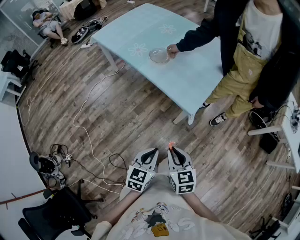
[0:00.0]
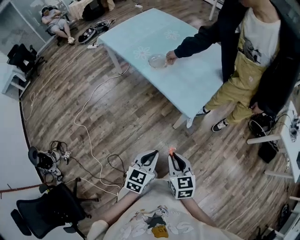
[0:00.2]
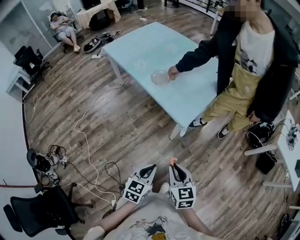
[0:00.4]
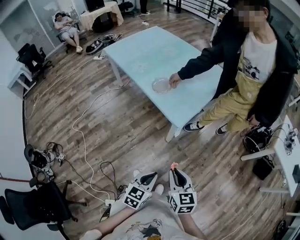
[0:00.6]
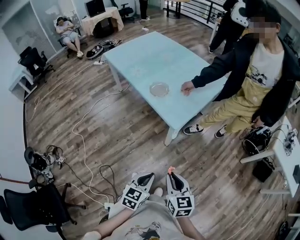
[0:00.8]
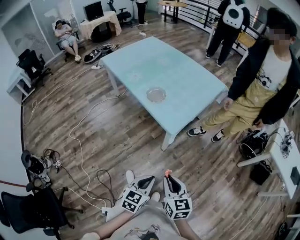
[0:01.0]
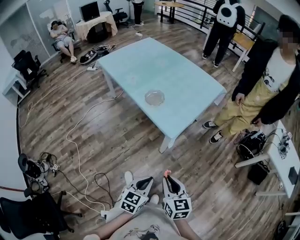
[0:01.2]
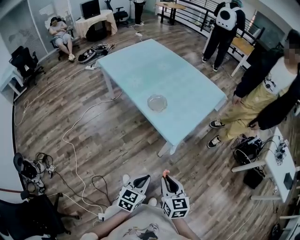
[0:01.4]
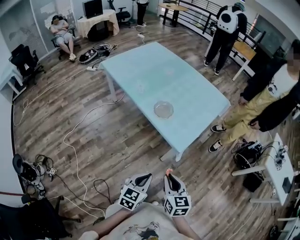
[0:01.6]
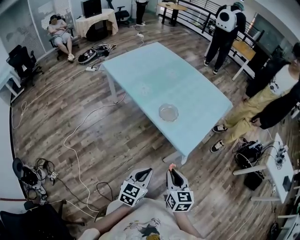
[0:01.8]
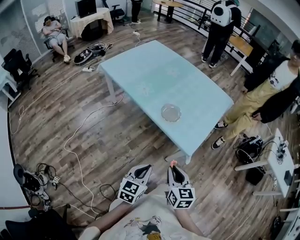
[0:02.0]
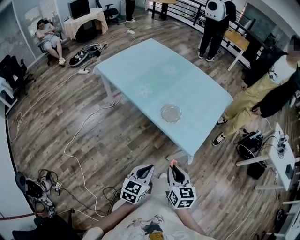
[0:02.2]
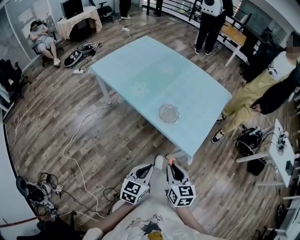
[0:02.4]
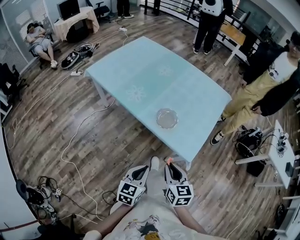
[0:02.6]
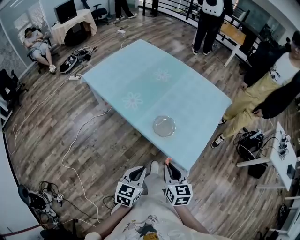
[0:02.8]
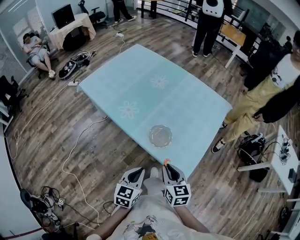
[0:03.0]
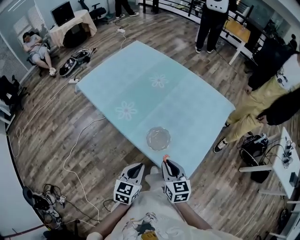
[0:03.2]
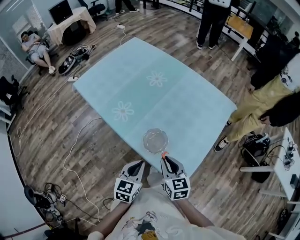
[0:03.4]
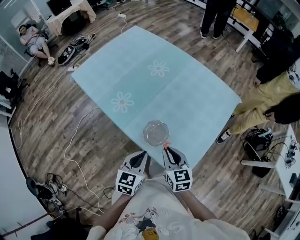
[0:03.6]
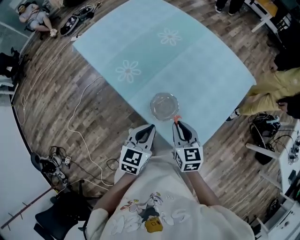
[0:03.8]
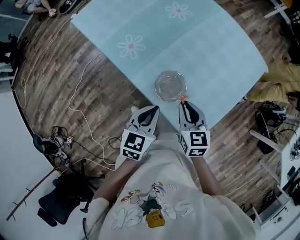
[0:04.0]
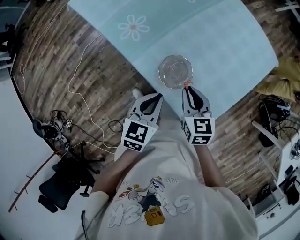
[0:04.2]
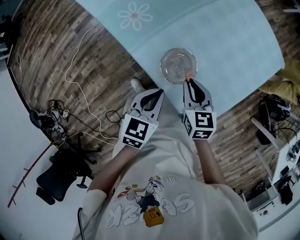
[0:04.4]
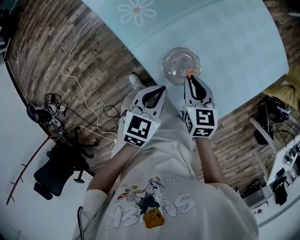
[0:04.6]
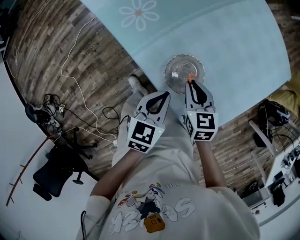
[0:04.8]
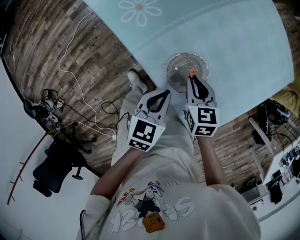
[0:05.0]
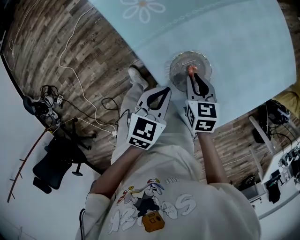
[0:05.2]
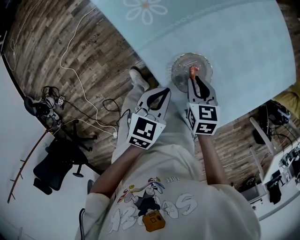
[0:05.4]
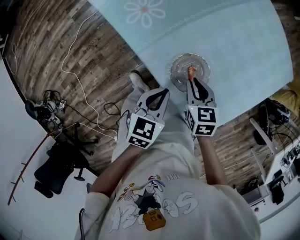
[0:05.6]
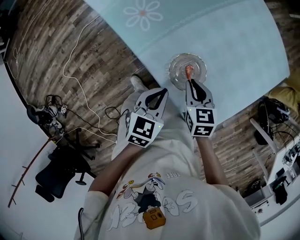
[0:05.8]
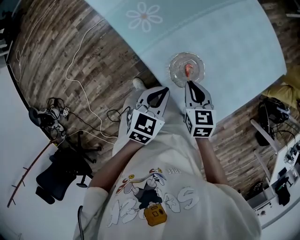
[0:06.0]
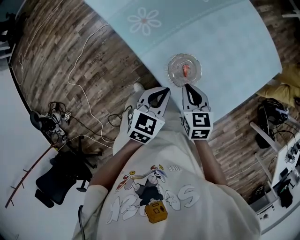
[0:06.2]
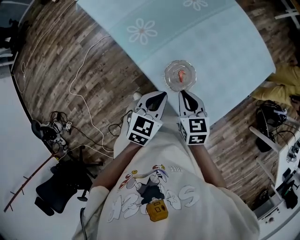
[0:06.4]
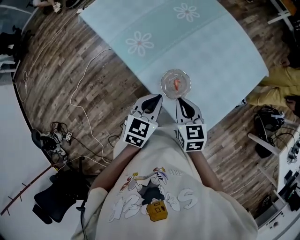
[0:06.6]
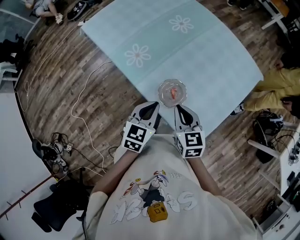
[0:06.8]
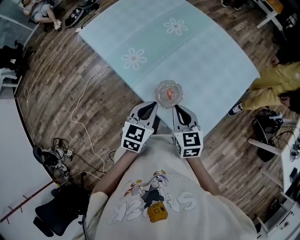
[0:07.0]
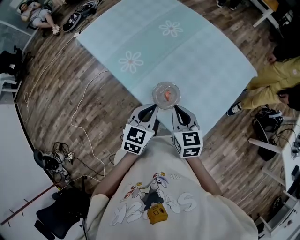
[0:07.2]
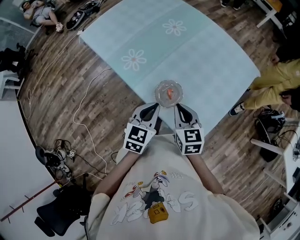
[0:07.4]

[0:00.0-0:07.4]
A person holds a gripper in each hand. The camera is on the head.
0:00.0 to 0:01.4: The two grippers go roughly 10 cm to the right.
0:01.4 to 0:03.0: Both grippers travel together forward and to the left, approximately 35 cm.
0:03.0 to 0:04.4: The left gripper moves forward, downward and to the right, about 15 cm. Meanwhile the right gripper goes approximately 20 cm forward and downward.
0:04.4 to 0:06.0: The right gripper reaches about 10 cm downward, then returns.
0:06.0 to 0:07.4: The grippers both shift upward by approximately 10 cm.

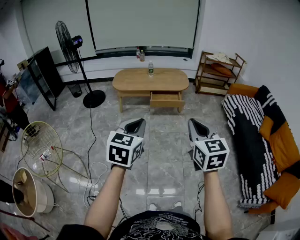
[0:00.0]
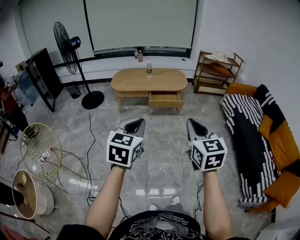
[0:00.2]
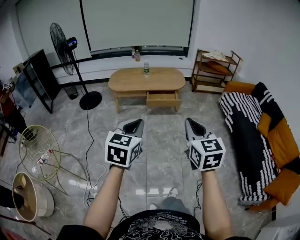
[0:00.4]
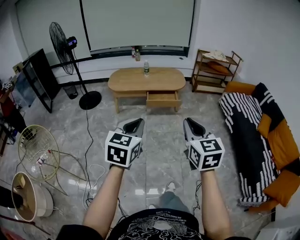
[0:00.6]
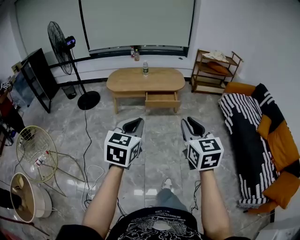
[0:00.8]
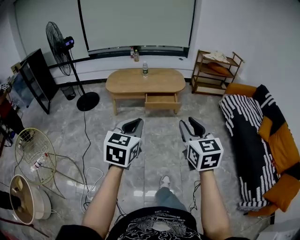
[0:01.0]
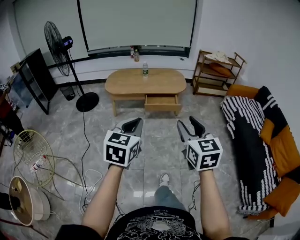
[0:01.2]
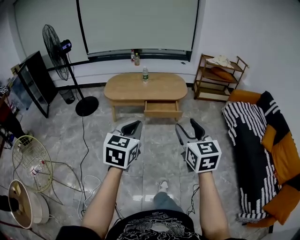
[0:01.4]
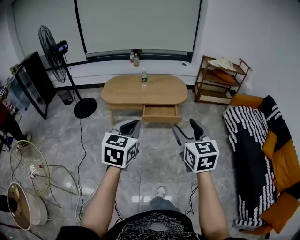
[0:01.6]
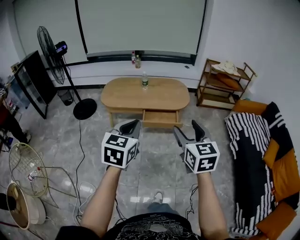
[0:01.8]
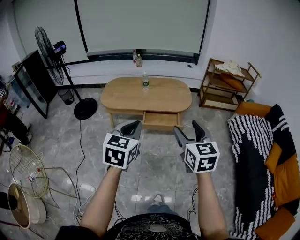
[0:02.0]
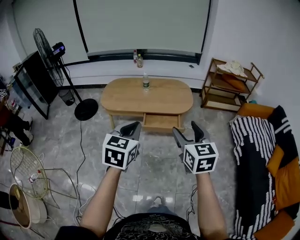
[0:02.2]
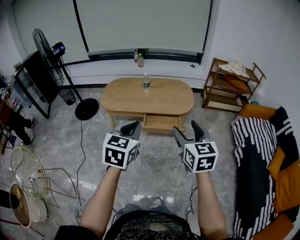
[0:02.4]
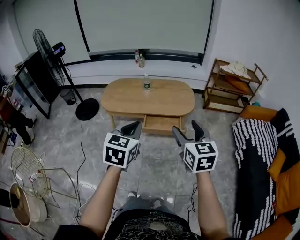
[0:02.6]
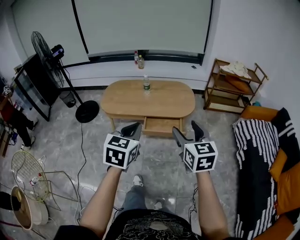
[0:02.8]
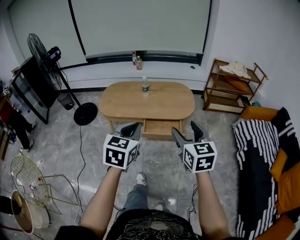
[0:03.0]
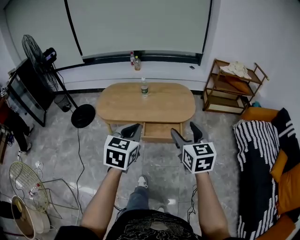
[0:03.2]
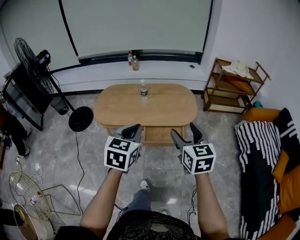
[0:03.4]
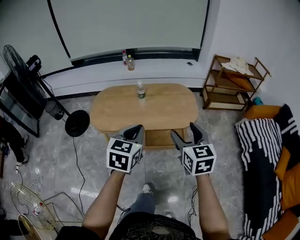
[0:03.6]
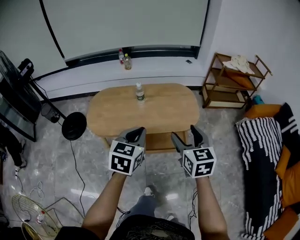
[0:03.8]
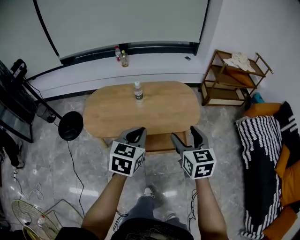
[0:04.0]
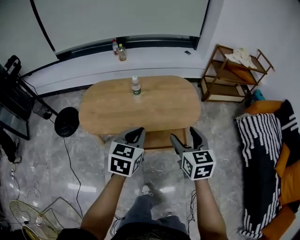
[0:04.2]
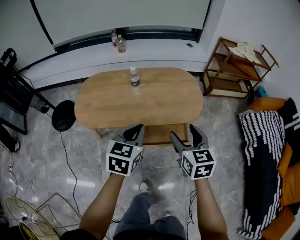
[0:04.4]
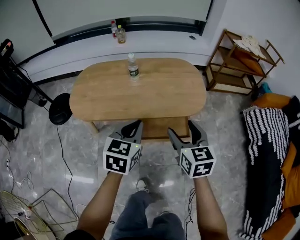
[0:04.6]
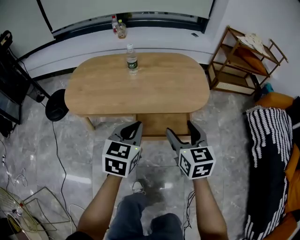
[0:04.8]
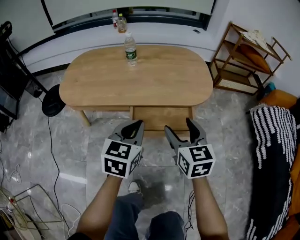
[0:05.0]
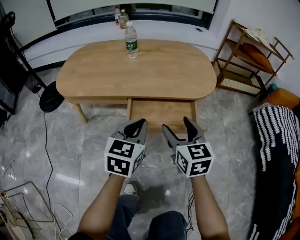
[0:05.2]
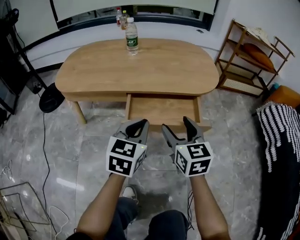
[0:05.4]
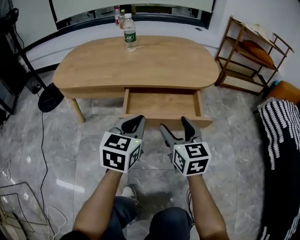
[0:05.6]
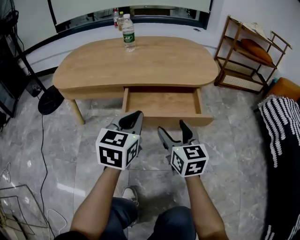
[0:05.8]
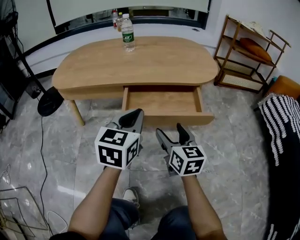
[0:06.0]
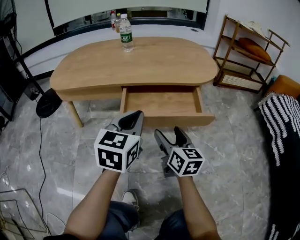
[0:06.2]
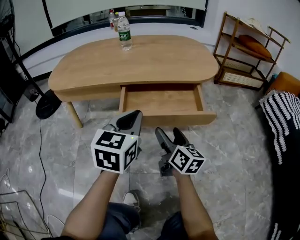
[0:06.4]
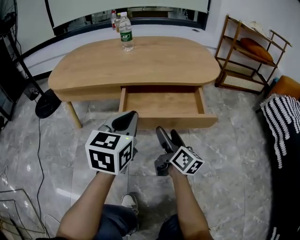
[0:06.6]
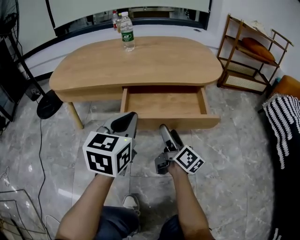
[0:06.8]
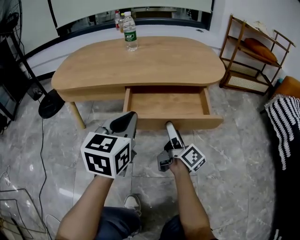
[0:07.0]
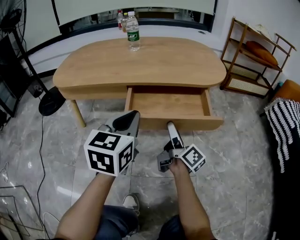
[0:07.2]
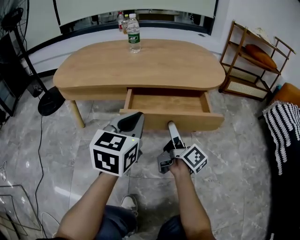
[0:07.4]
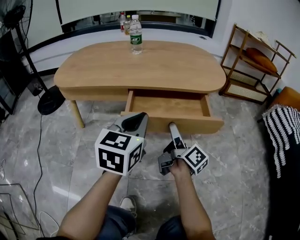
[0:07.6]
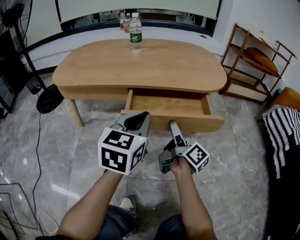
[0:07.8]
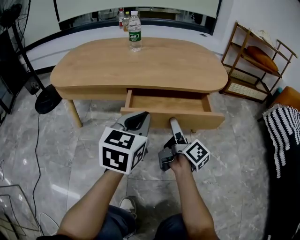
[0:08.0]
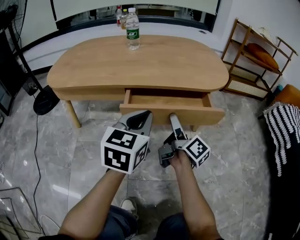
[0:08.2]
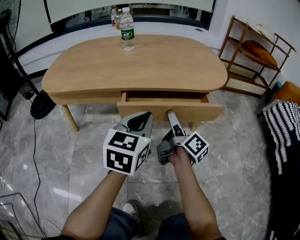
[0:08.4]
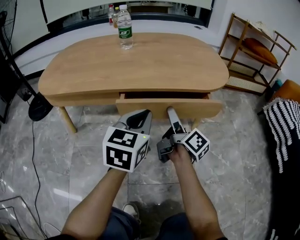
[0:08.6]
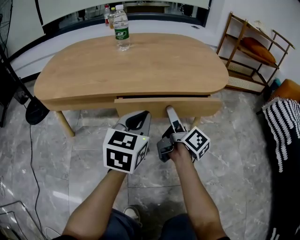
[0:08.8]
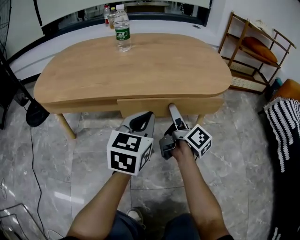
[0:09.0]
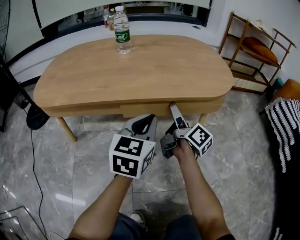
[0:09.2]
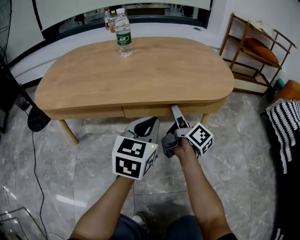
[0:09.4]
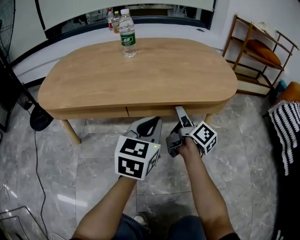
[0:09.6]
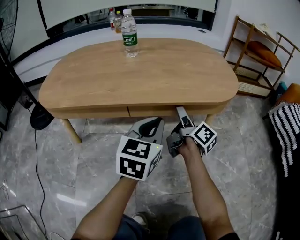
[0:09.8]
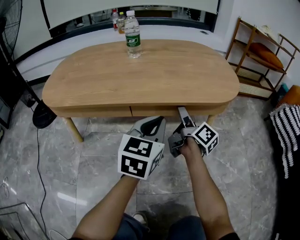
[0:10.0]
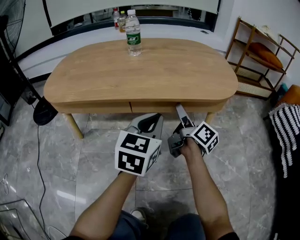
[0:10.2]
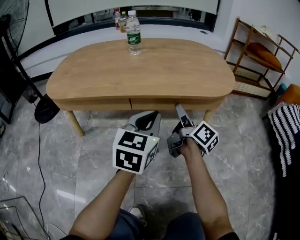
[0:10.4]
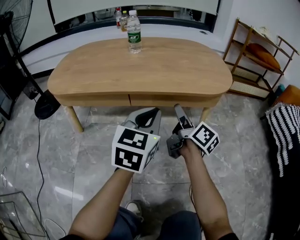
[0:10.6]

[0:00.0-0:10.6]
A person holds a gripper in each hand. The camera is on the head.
0:00.0 to 0:01.6: The two grippers go some 25 cm forward. The right gripper opens.
0:01.6 to 0:03.0: Both grippers travel together forward, roughly 25 cm.
0:03.0 to 0:04.6: The right gripper is displaced downward and forward by roughly 35 cm. The left gripper goes about 35 cm forward and downward.
0:04.6 to 0:06.0: Both grippers travel together downward, roughly 30 cm.
0:06.0 to 0:07.6: The right gripper is displaced forward by about 5 cm, and rotates around the line of its fingers by roughly 60 degrees, clockwise from behind.
0:07.6 to 0:09.0: The right gripper moves forward, approximately 15 cm. The left gripper travels forward and downward by about 10 cm.
0:09.0 to 0:10.6: The left gripper moves roughly 5 cm; the right gripper changes place by roughly 5 cm, and closes.

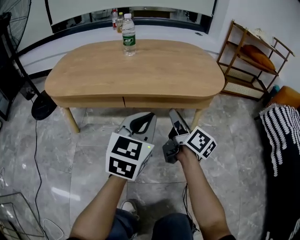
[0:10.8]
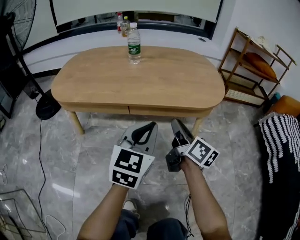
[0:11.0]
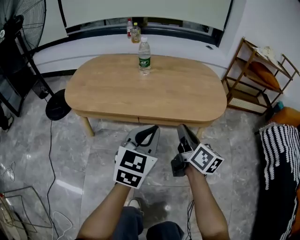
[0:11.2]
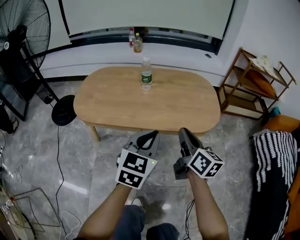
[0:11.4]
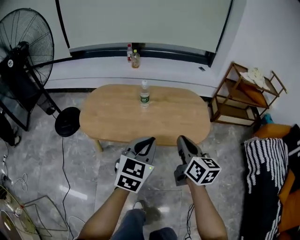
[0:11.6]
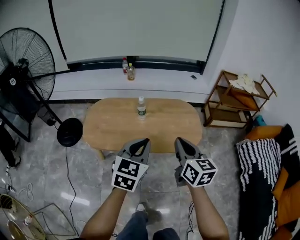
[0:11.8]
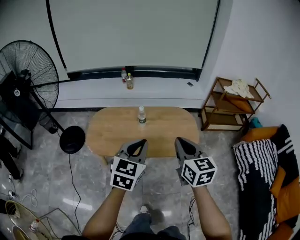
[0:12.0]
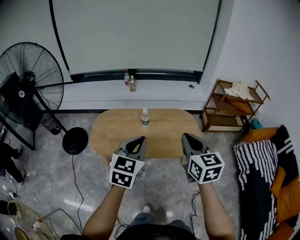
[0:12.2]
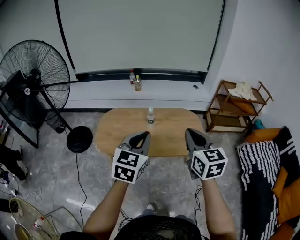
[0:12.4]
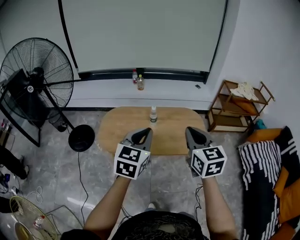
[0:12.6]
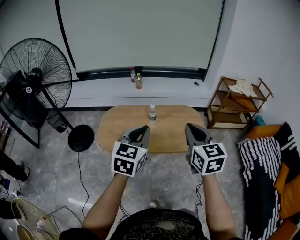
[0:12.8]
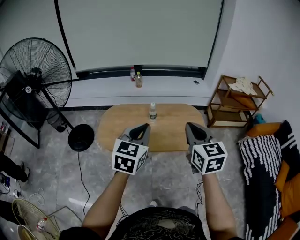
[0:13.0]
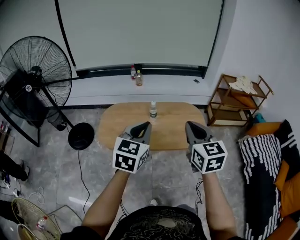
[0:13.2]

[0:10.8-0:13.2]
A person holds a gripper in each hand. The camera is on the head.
0:10.8 to 0:12.0: The two grippers go some 50 cm upward. The right gripper rotates around the line of its fingers by about 50 degrees, counterclockwise from behind, and closes its fingers.
0:12.0 to 0:13.2: The right gripper shifts about 5 cm upward, while the left gripper is displaced to the left and upward by about 10 cm.

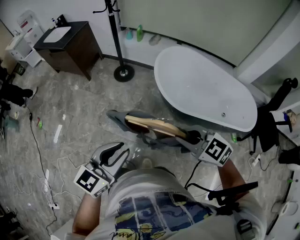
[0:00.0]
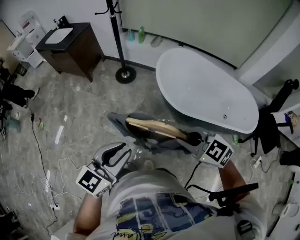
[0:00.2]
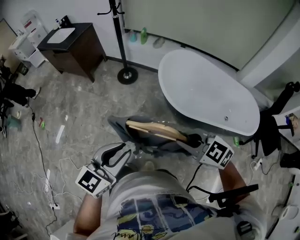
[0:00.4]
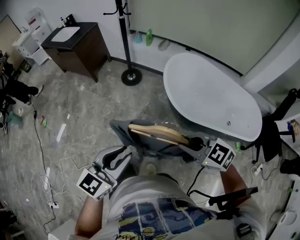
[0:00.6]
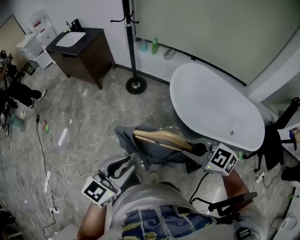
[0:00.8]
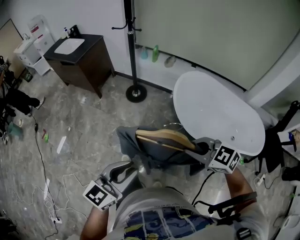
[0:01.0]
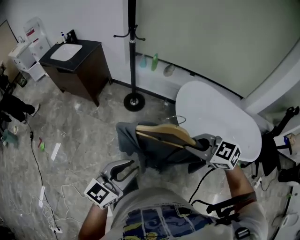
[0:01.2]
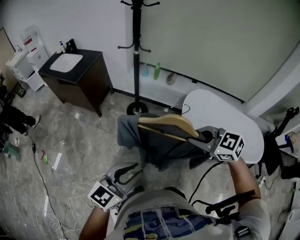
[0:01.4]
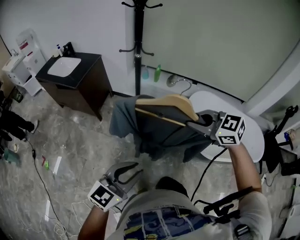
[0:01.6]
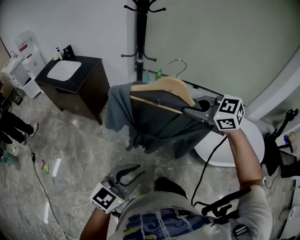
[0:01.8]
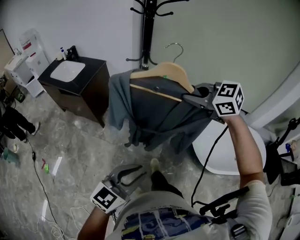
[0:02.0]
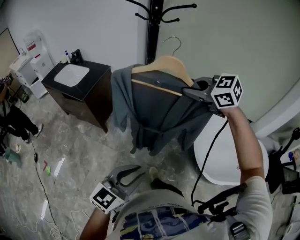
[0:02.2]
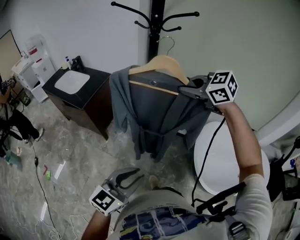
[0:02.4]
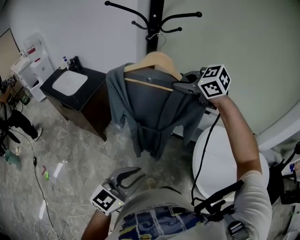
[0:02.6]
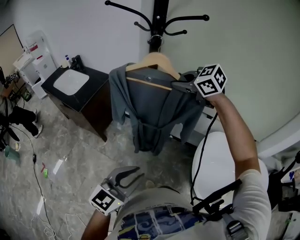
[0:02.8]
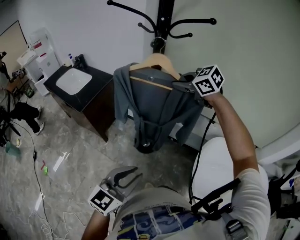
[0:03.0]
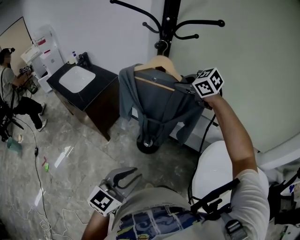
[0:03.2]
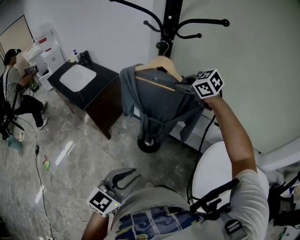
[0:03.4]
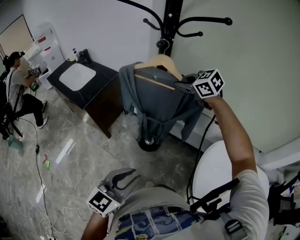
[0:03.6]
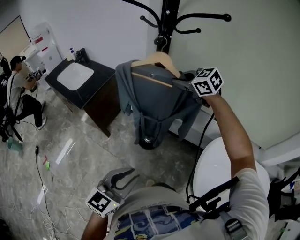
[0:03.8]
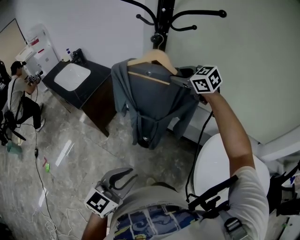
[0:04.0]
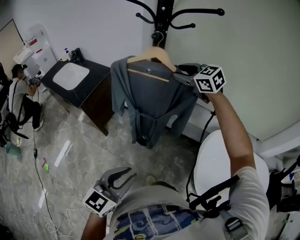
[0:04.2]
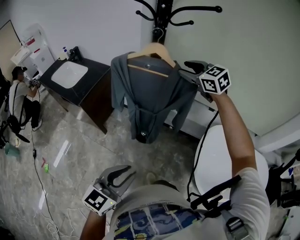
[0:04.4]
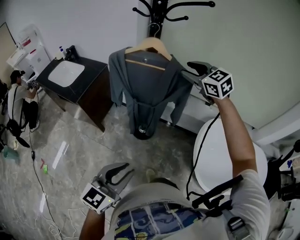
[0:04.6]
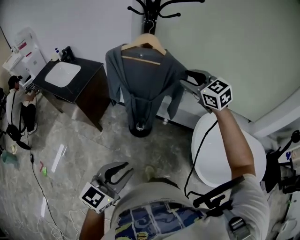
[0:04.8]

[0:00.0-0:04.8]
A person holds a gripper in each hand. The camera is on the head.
0:00.0 to 0:01.6: Both grippers move forward and to the left, roughly 35 cm.
0:01.6 to 0:03.2: The left gripper heads forward, covering approximately 30 cm; the right gripper heads forward, covering roughly 50 cm.
0:03.2 to 0:04.8: The right gripper is displaced backward by approximately 15 cm, turns by some 30 degrees, and opens up; the left gripper heads backward and to the left, covering some 10 cm.
